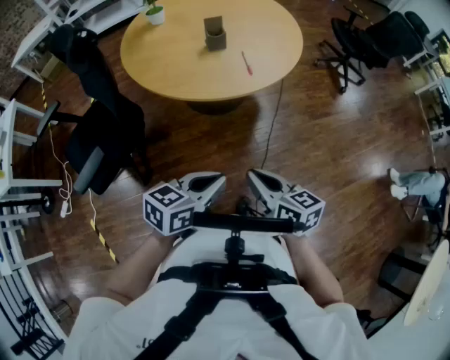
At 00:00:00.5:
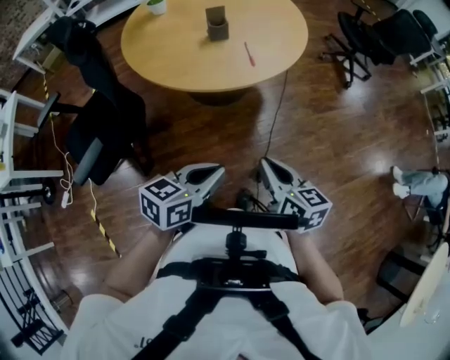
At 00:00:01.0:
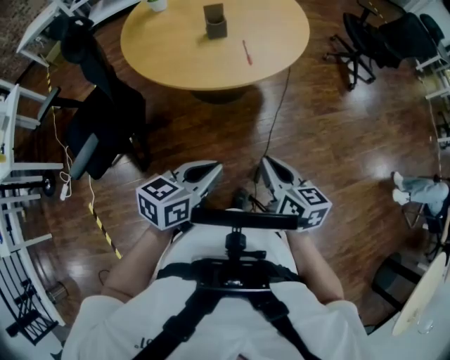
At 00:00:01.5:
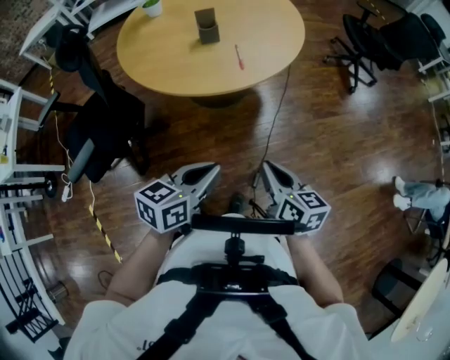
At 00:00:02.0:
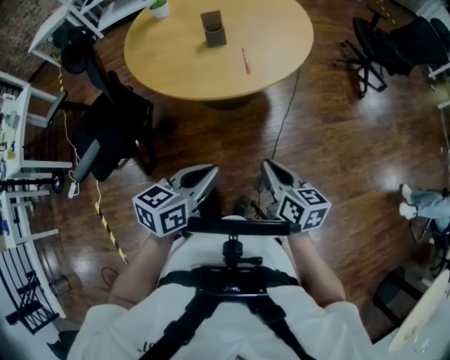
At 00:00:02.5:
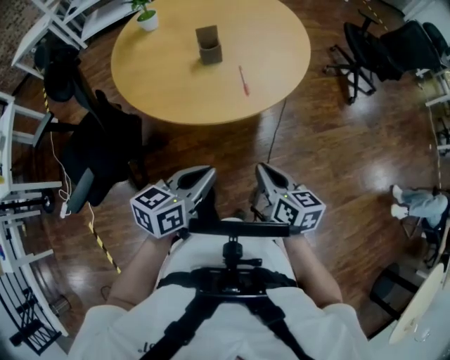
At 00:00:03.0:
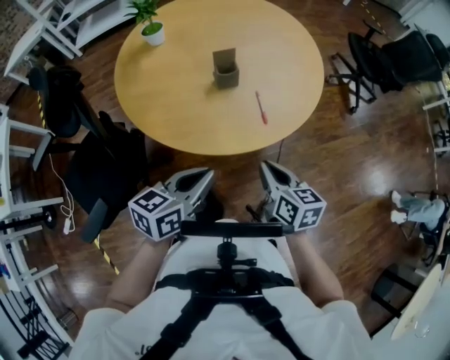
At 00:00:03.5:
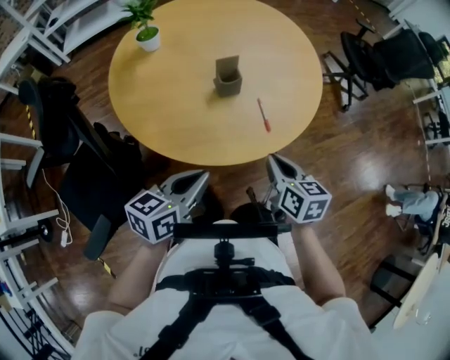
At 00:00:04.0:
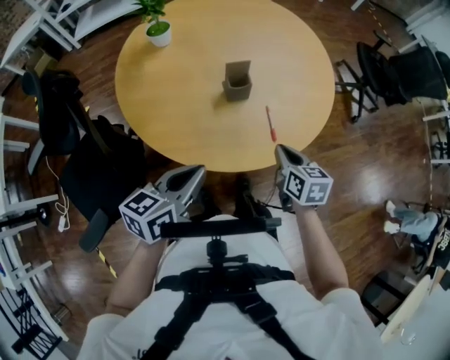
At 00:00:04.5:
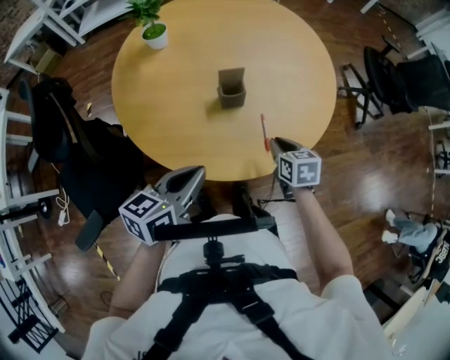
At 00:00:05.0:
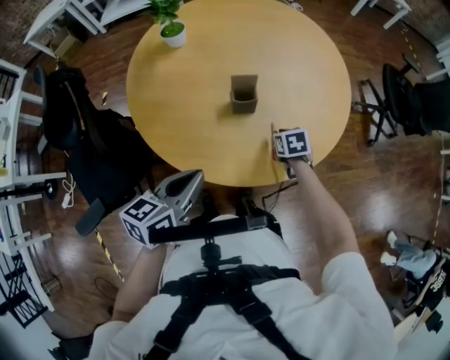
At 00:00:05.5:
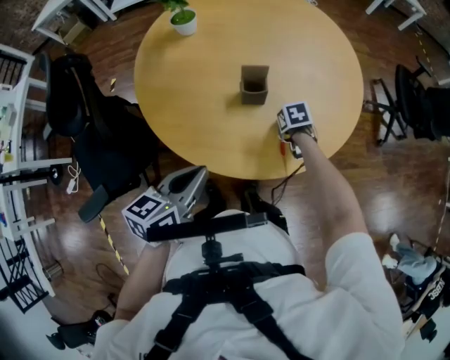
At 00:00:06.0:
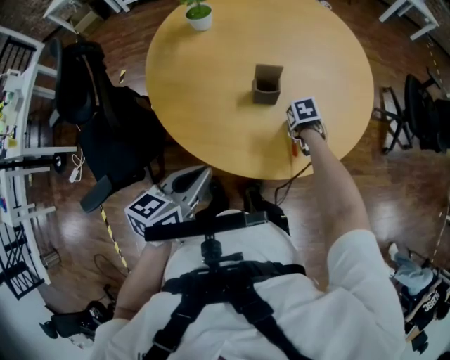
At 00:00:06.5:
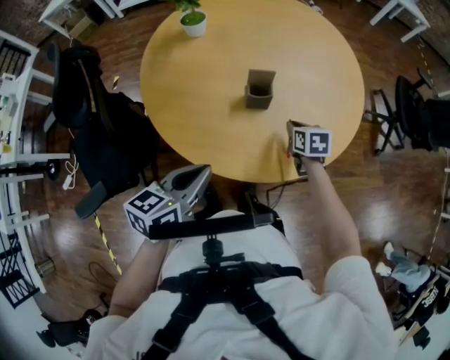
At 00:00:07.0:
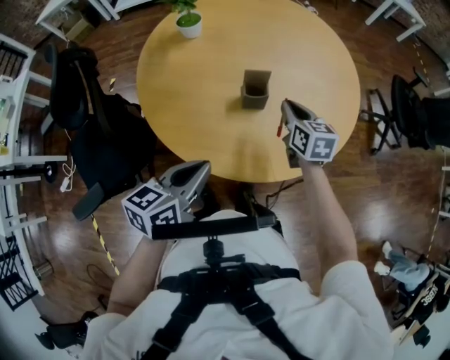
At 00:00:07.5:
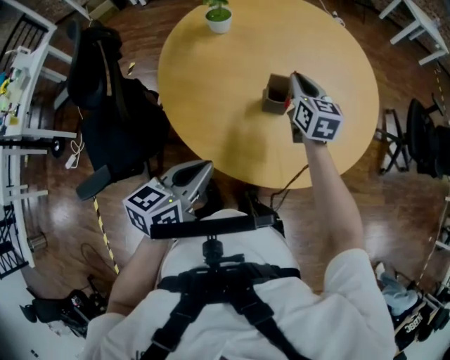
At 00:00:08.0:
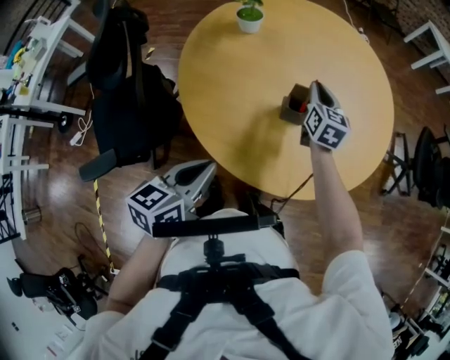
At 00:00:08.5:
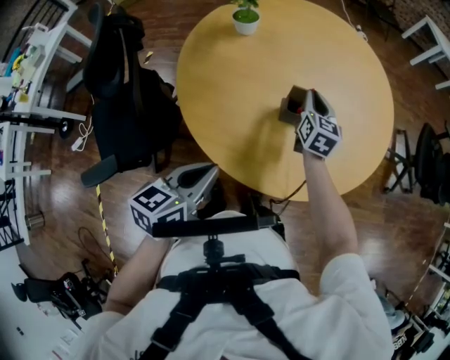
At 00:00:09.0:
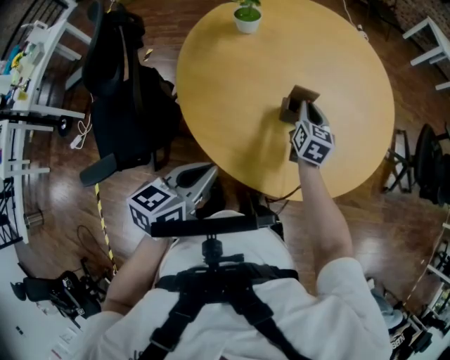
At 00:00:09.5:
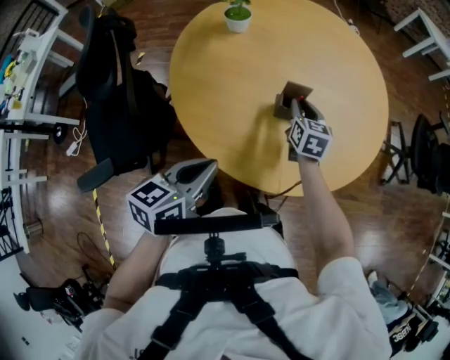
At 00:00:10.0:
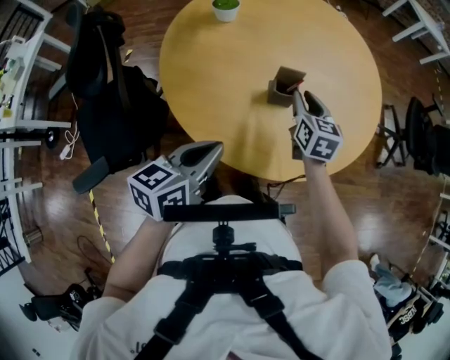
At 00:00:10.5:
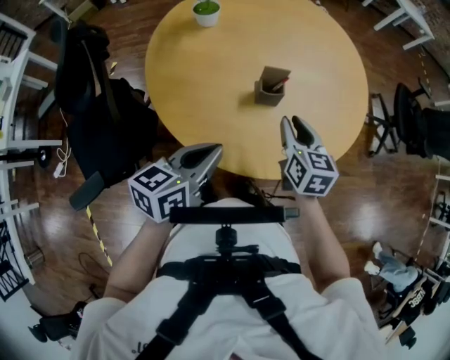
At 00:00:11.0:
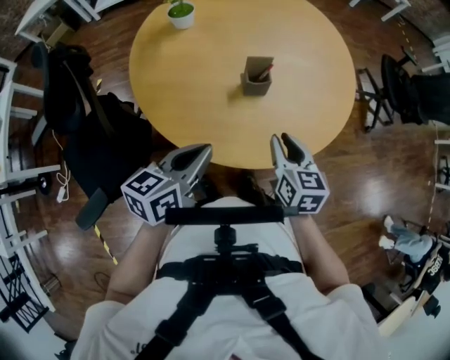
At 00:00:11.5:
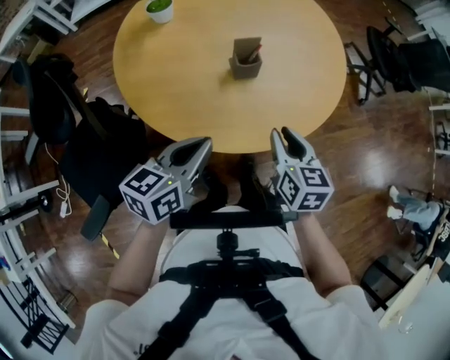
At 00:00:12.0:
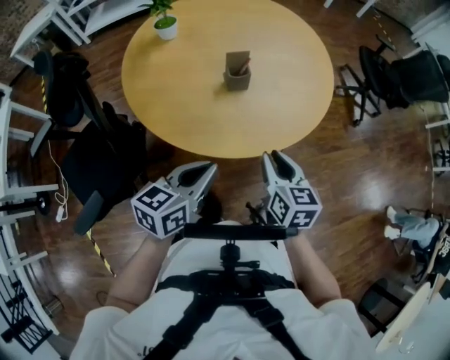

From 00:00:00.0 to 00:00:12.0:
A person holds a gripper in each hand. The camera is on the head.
From 00:00:00.0 to 00:00:02.0: The left gripper goes some 10 cm forward and to the right. Meanwhile the right gripper is displaced to the right and forward by roughly 15 cm.
From 00:00:02.0 to 00:00:04.0: The grippers both shift forward and to the left by roughly 35 cm. The right gripper swivels approximately 20 degrees.
From 00:00:04.0 to 00:00:06.0: The right gripper ends up approximately 25 cm from where it was, and tips its fingers downward by approximately 40 degrees.
From 00:00:06.0 to 00:00:08.0: The right gripper moves upward, about 20 cm, and points its fingers about 60 degrees further upward.
From 00:00:08.0 to 00:00:10.0: The right gripper travels backward by about 10 cm.
From 00:00:10.0 to 00:00:12.0: The left gripper moves backward and to the right, roughly 10 cm. The right gripper goes approximately 25 cm backward.

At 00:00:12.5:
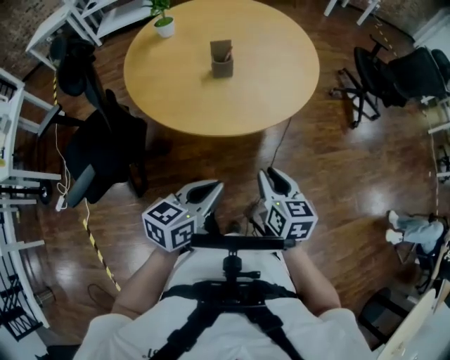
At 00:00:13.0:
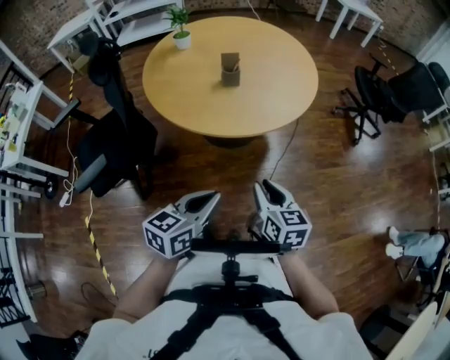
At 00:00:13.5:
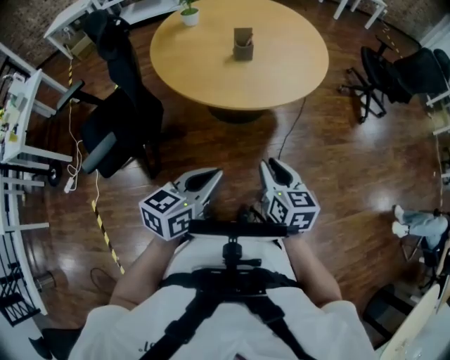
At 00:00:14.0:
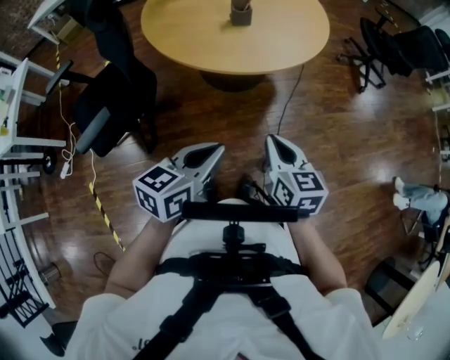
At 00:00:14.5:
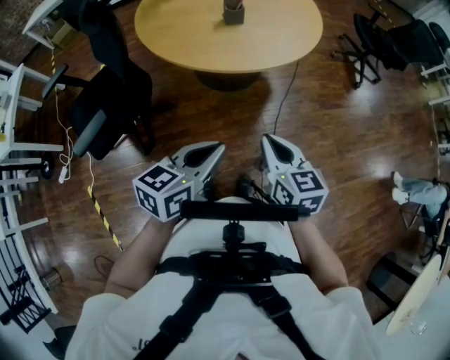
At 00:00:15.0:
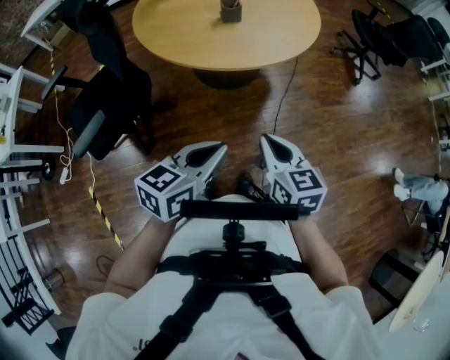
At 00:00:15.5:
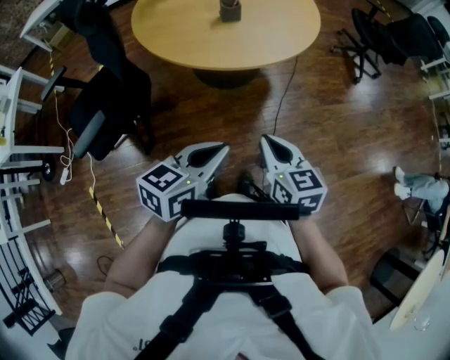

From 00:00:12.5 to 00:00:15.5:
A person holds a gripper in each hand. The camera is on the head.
From 00:00:12.5 to 00:00:14.0: Both grippers travel together backward, about 15 cm. The right gripper closes its fingers.
From 00:00:14.0 to 00:00:15.5: The grippers stay close to where they were, moving slightly.

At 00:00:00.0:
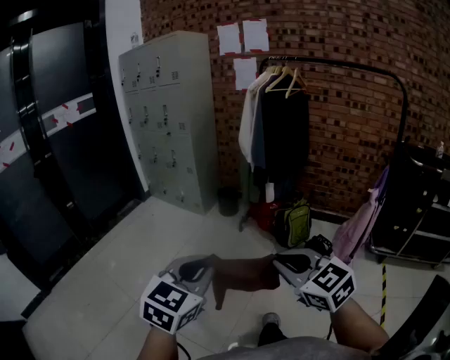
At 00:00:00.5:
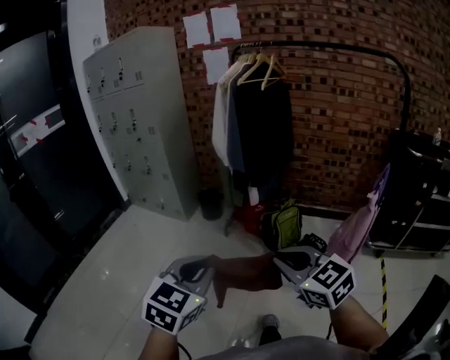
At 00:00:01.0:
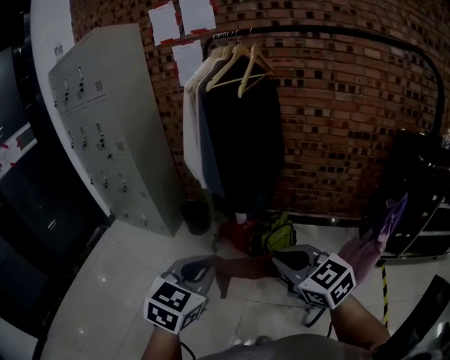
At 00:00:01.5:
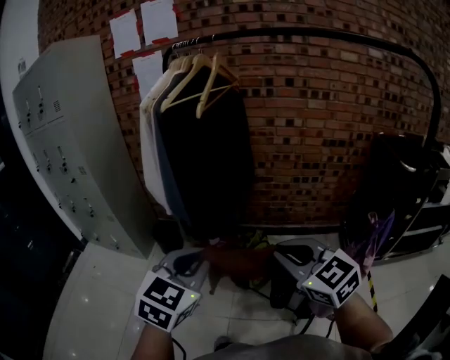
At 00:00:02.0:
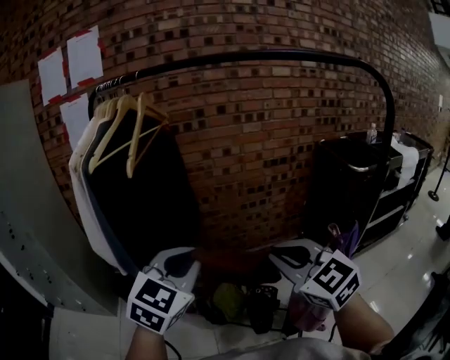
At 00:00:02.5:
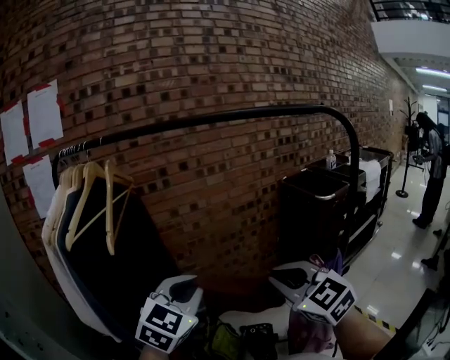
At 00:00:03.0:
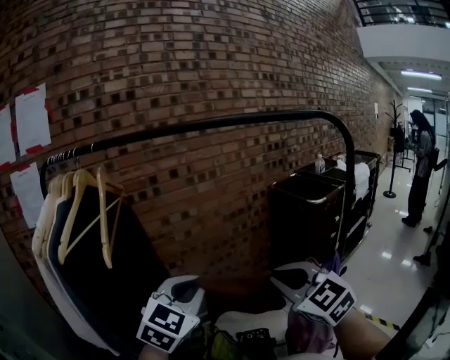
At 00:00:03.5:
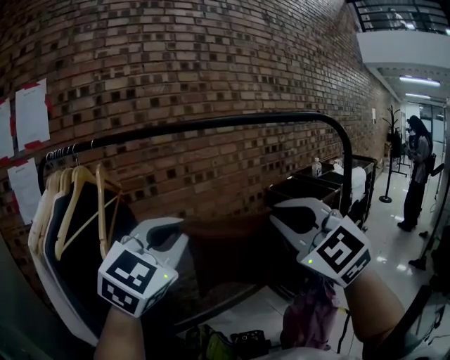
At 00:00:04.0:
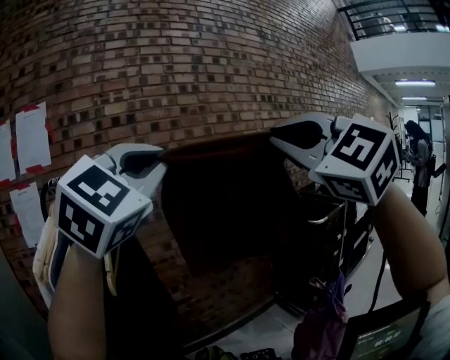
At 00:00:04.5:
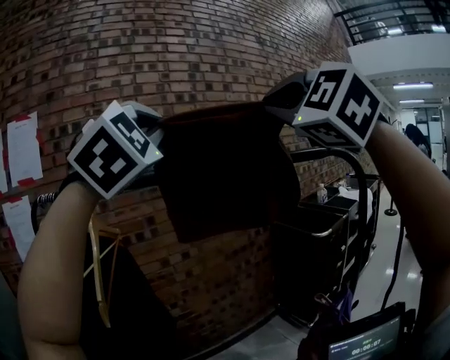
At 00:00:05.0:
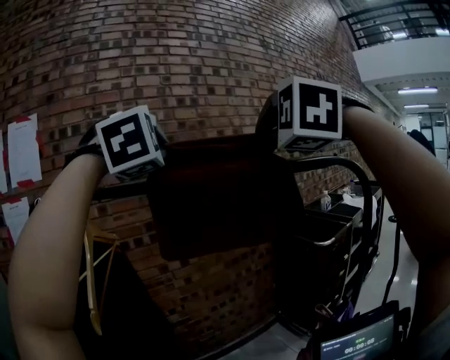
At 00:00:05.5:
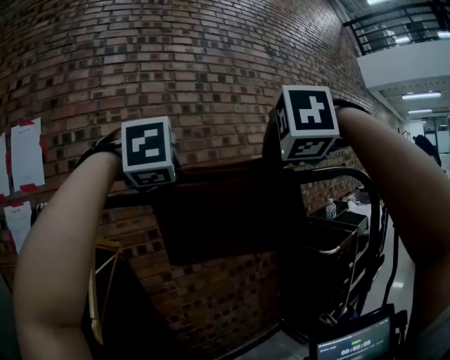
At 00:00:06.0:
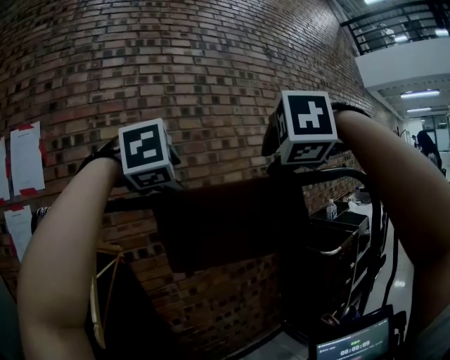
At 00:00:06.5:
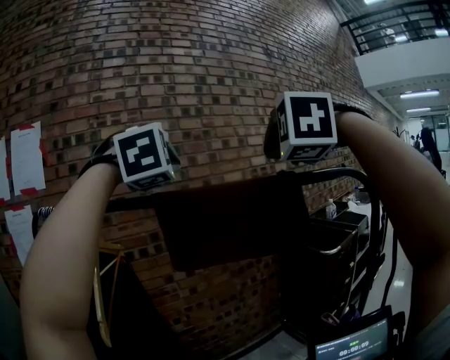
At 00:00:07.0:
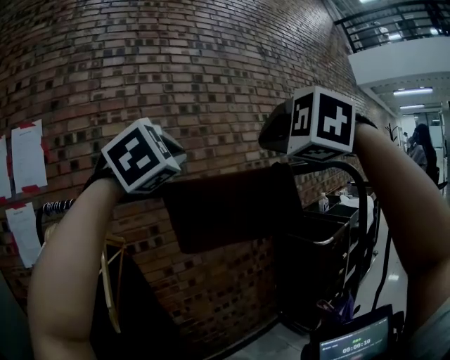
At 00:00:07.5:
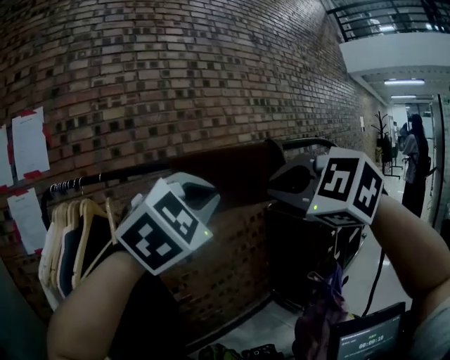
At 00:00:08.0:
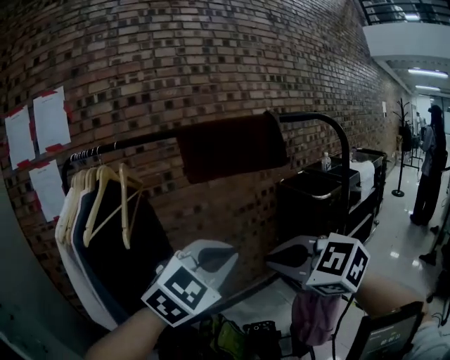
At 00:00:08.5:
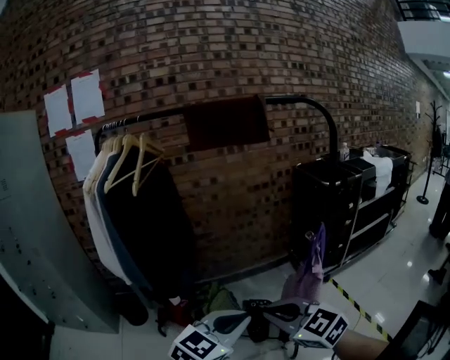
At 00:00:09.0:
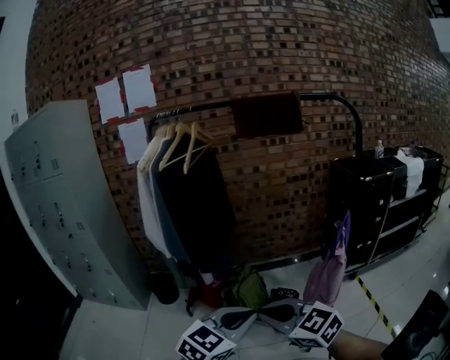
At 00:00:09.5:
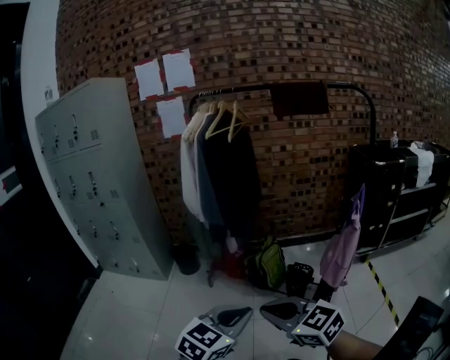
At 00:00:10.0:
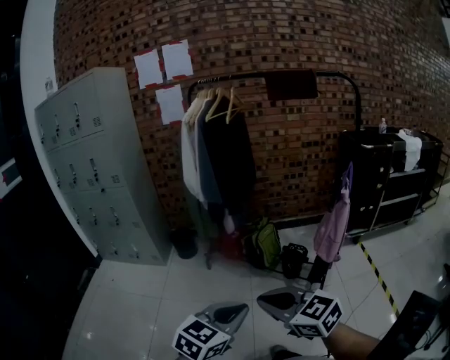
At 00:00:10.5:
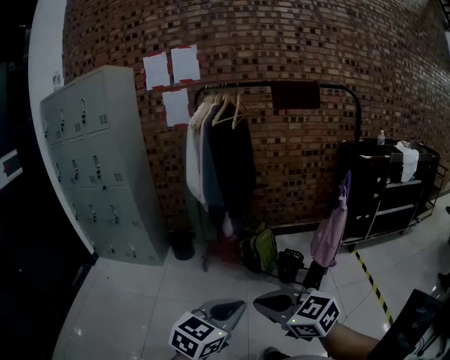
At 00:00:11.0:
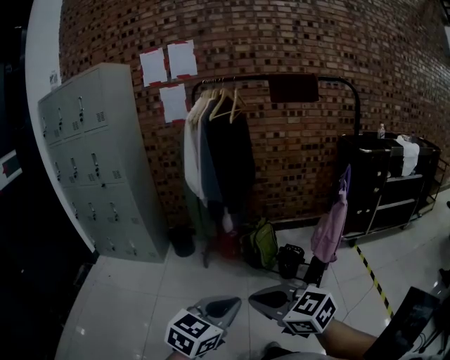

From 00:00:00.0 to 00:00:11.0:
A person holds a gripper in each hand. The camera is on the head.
From 00:00:00.0 to 00:00:02.0: The pair of grippers is taken about 70 cm. The right gripper rotates approximately 40 degrees. Meanwhile the left gripper swivels approximately 40 degrees.
From 00:00:02.0 to 00:00:03.5: The right gripper heads upward, covering approximately 20 cm, and rotates about 40 degrees; the left gripper goes some 20 cm upward and forward, and turns by about 30 degrees.
From 00:00:03.5 to 00:00:05.5: The left gripper travels forward and upward by approximately 25 cm, and points its fingers roughly 30 degrees further downward. Meanwhile the right gripper goes roughly 25 cm upward and forward, and tilts its fingers about 30 degrees downward.
From 00:00:05.5 to 00:00:07.5: The grippers both shift backward and downward by about 20 cm. The right gripper swivels roughly 40 degrees, and opens, then closes once more. Meanwhile the left gripper rotates approximately 40 degrees, and opens, then closes again.
From 00:00:07.5 to 00:00:09.0: The left gripper changes place by approximately 60 cm, and twists about 60 degrees counterclockwise, seen from behind, while the right gripper changes place by roughly 50 cm, and rotates some 60 degrees.
From 00:00:09.0 to 00:00:11.0: Both grippers travel together backward and to the left, roughly 35 cm.
